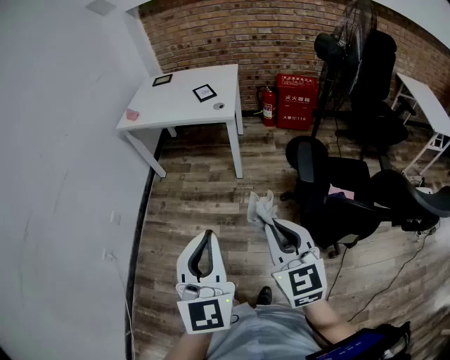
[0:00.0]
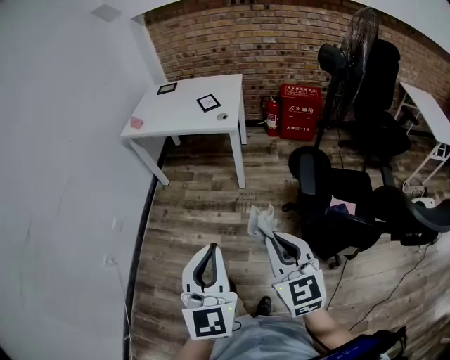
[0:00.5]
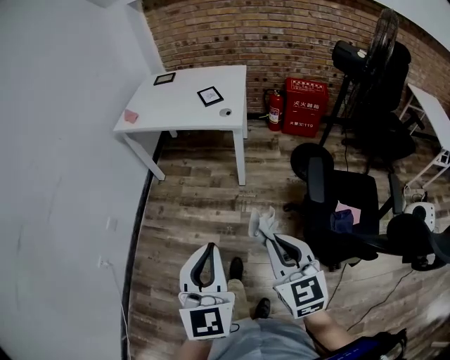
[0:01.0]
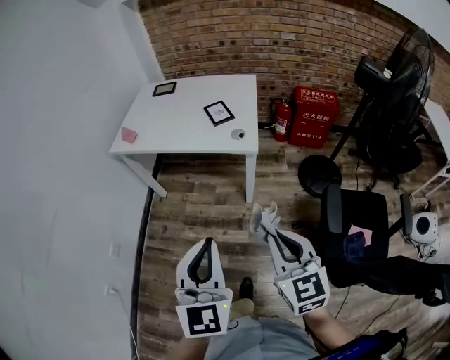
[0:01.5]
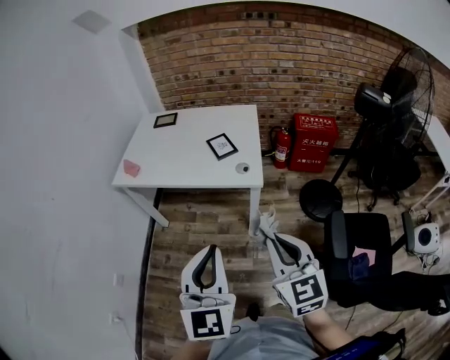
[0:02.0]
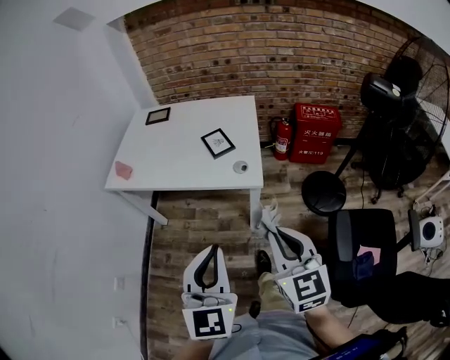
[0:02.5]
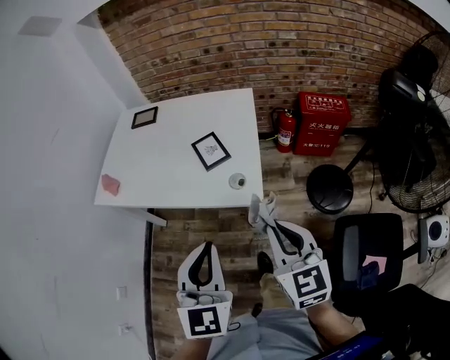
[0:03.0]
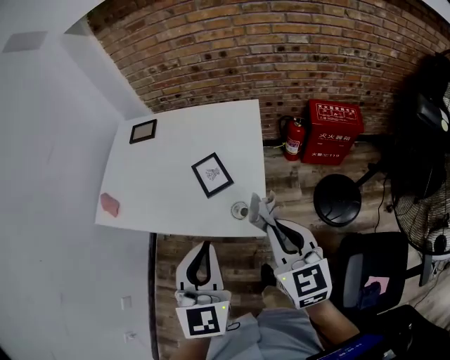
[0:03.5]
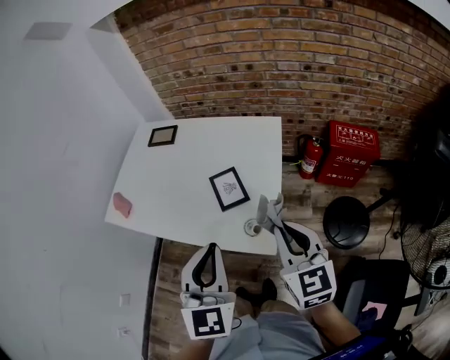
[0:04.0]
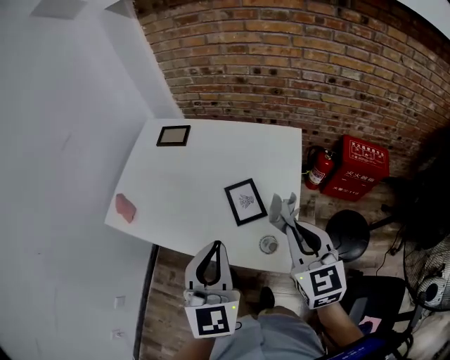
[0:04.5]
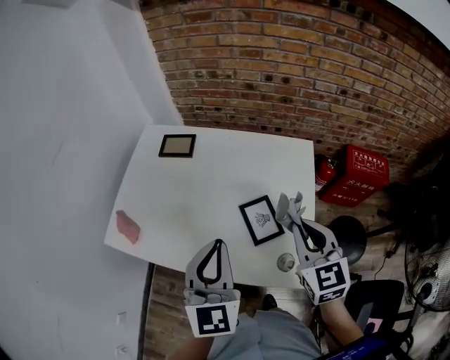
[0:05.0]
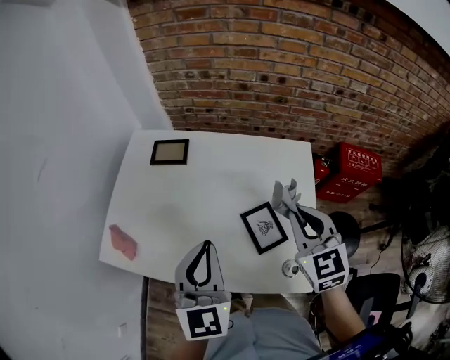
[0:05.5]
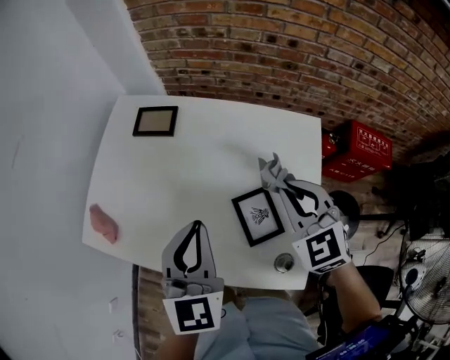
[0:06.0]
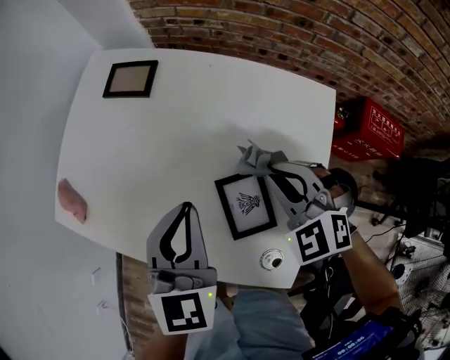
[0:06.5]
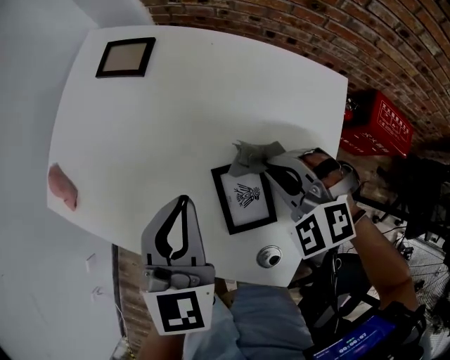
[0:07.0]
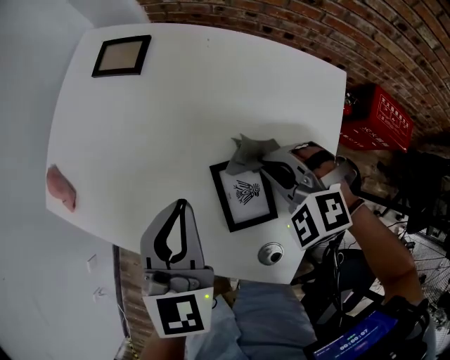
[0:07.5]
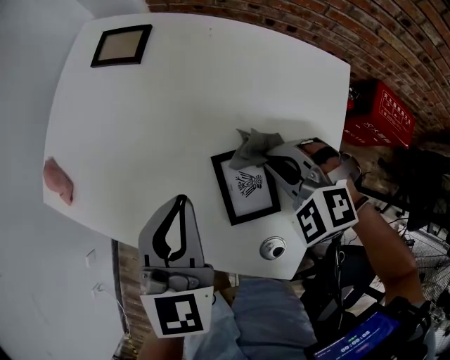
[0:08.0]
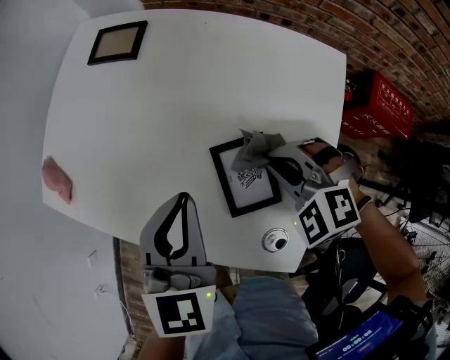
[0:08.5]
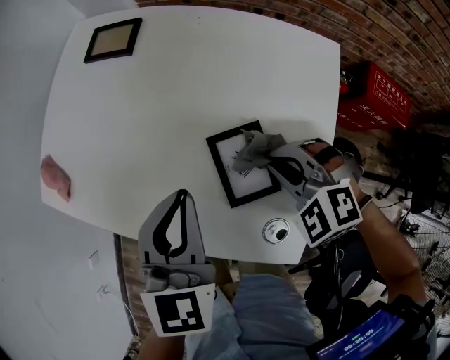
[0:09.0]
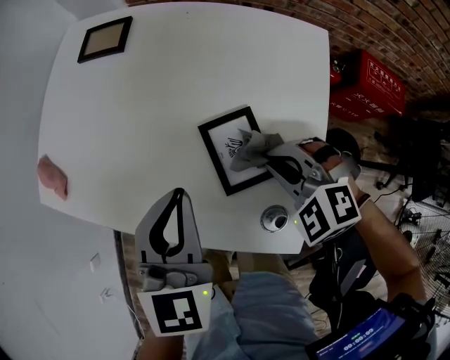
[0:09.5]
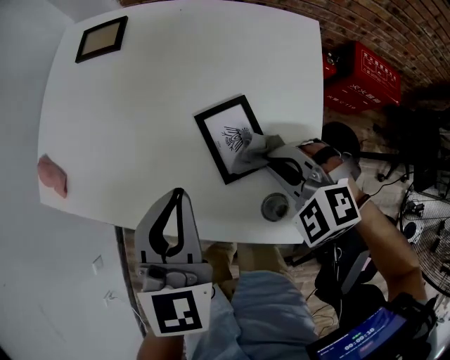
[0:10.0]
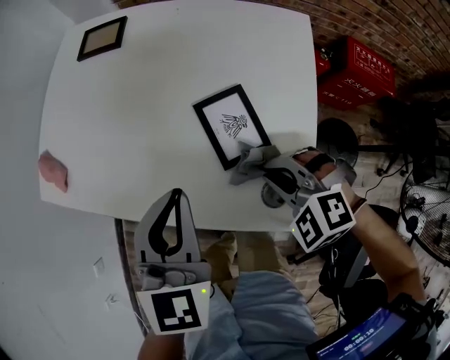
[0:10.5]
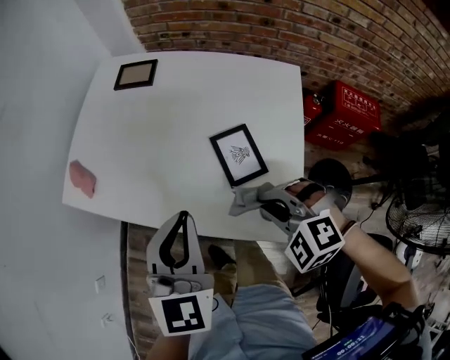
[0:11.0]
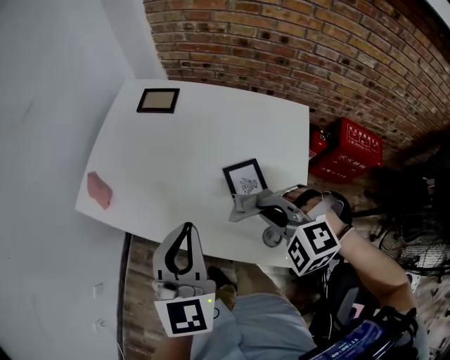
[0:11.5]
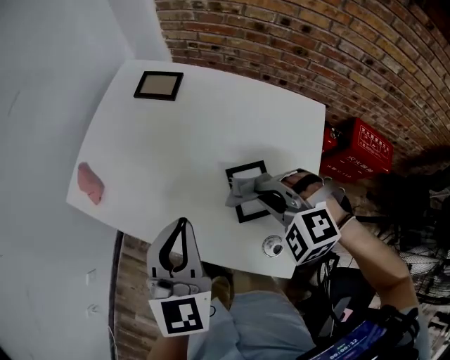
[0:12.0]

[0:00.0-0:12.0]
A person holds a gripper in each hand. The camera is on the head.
0:00.0 to 0:02.0: Both grippers move forward, approximately 35 cm.
0:02.0 to 0:04.0: Both grippers move forward, roughly 35 cm.
0:04.0 to 0:06.0: The right gripper heads forward, covering some 30 cm, and turns by approximately 30 degrees, while the left gripper is displaced forward and to the left by approximately 30 cm.
0:06.0 to 0:08.0: The right gripper moves downward, roughly 15 cm, and swivels some 50 degrees. Meanwhile the left gripper heads downward, covering roughly 10 cm.
0:08.0 to 0:10.0: The left gripper shifts approximately 5 cm backward. Meanwhile the right gripper heads backward, covering roughly 10 cm.
0:10.0 to 0:12.0: The left gripper heads upward and to the left, covering approximately 10 cm. The right gripper goes about 10 cm upward and forward.

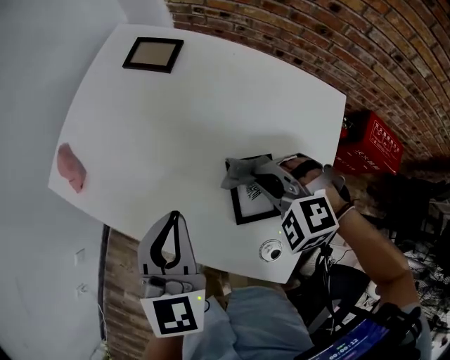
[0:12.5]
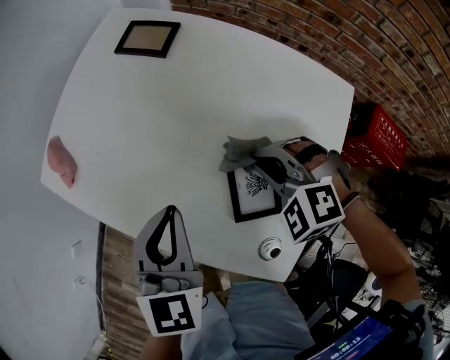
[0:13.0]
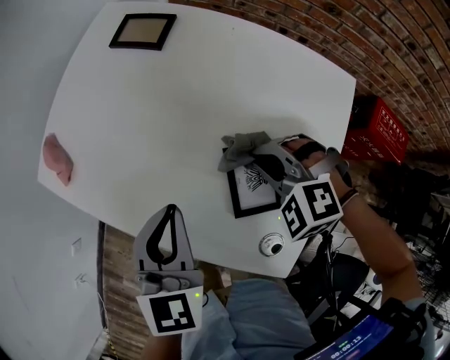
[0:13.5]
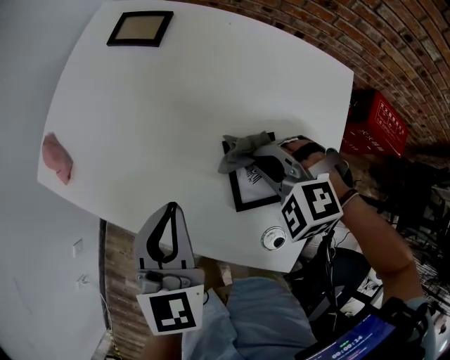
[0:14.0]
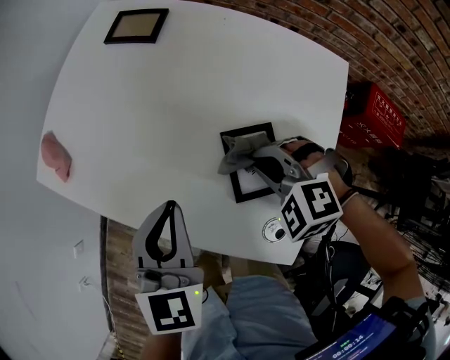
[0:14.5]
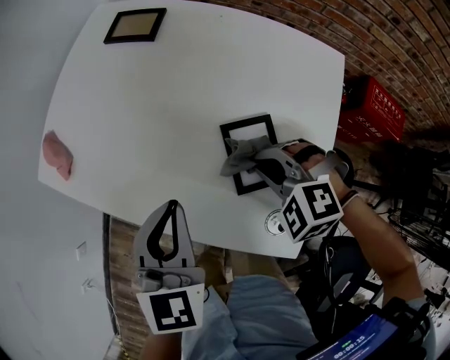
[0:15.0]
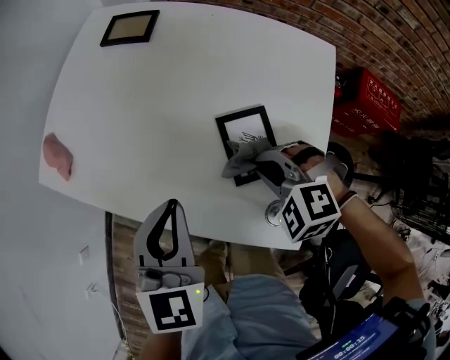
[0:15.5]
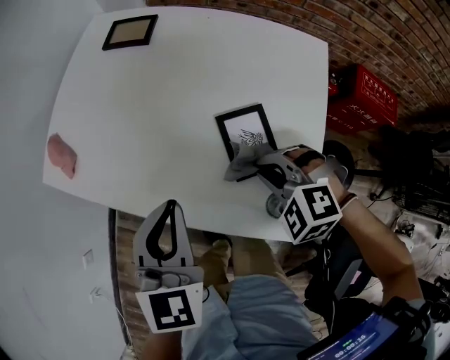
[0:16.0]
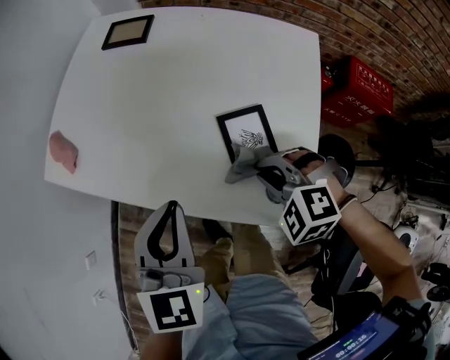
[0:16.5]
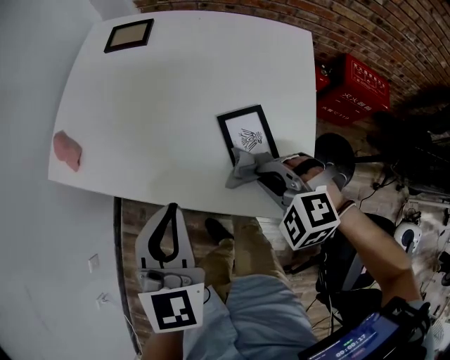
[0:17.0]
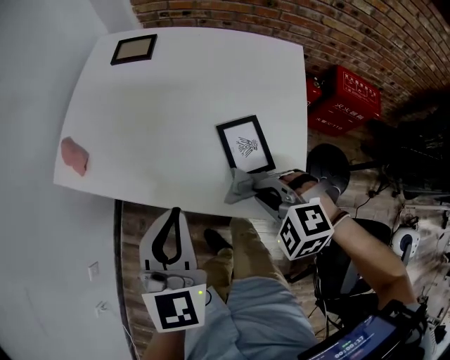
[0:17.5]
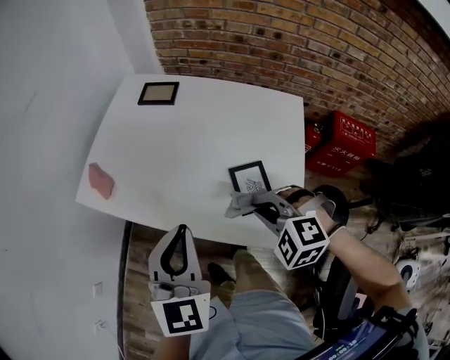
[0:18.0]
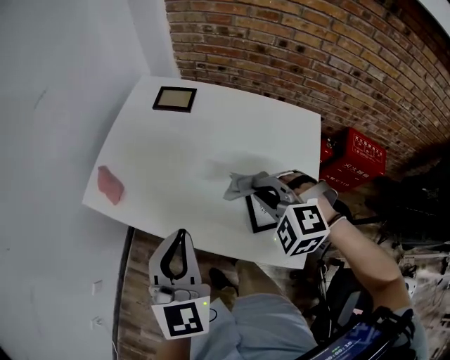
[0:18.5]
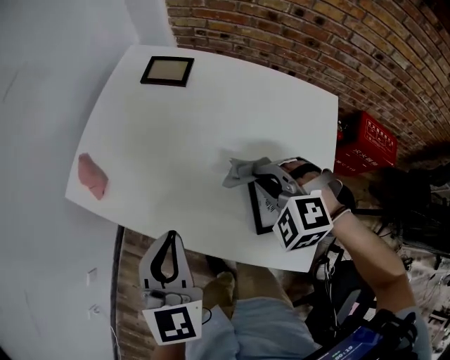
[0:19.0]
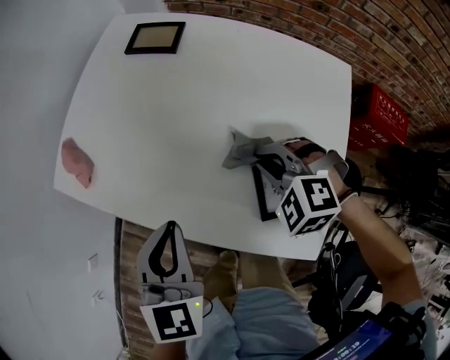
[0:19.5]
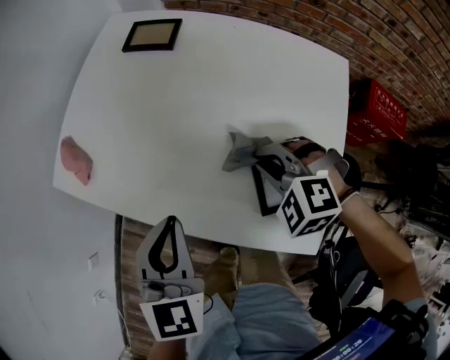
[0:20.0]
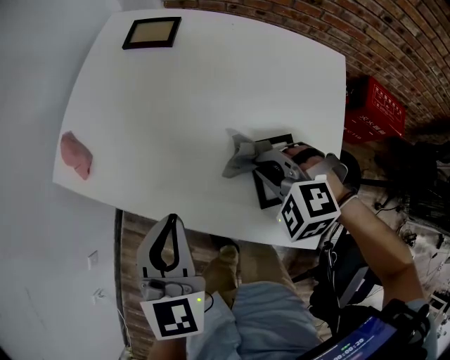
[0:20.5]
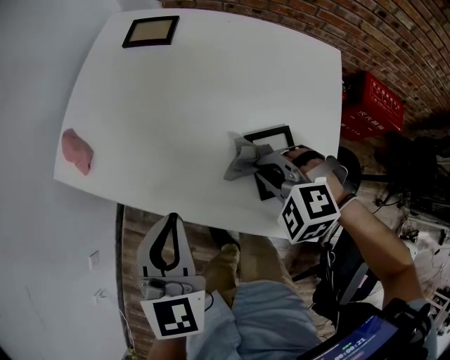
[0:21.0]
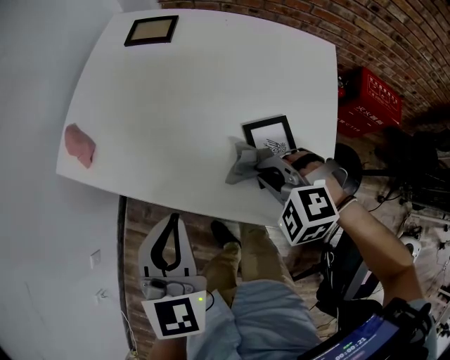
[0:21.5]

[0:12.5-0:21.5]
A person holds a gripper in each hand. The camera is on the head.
0:12.5 to 0:14.5: There are only small adjustments of the grippers.
0:14.5 to 0:17.0: The two grippers go roughly 10 cm backward.
0:17.0 to 0:19.5: The right gripper is displaced forward by about 15 cm. The left gripper moves forward, about 5 cm, and moves roughly 10 cm upward and comes back.
0:19.5 to 0:21.5: The left gripper shifts roughly 5 cm backward, while the right gripper goes approximately 10 cm backward.

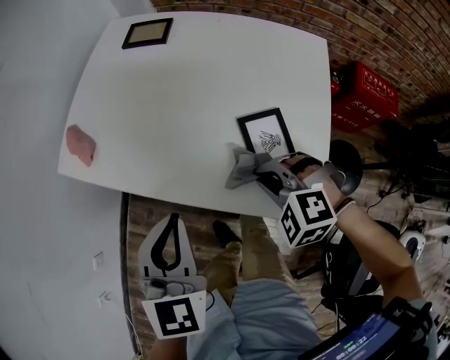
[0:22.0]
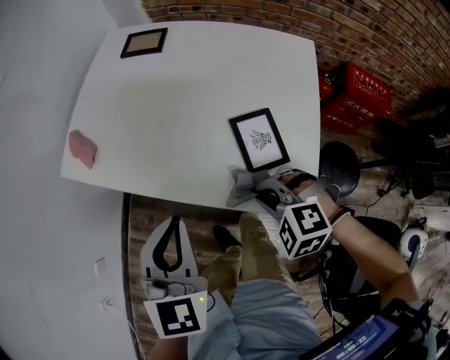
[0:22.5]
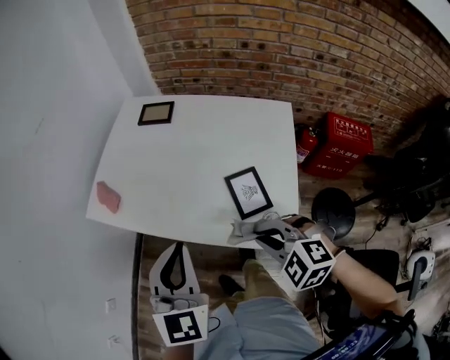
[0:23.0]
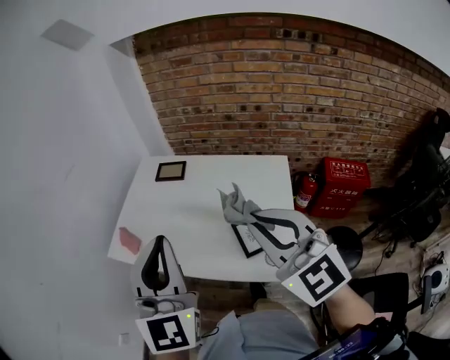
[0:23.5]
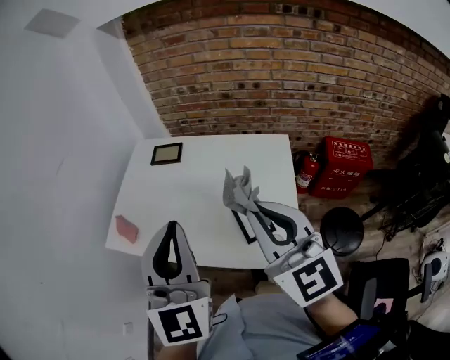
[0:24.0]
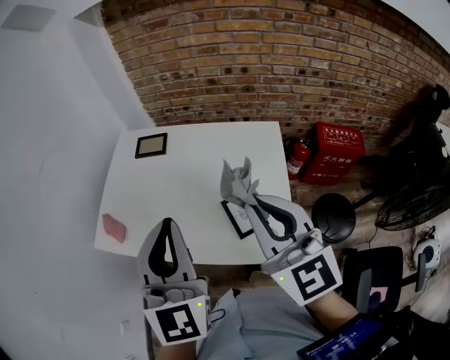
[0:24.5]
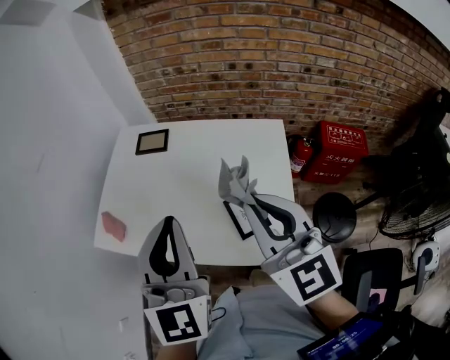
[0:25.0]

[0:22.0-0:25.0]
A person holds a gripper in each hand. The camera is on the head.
0:22.0 to 0:23.5: The grippers both shift upward by about 35 cm. The right gripper tips its fingers upward by about 60 degrees. The left gripper points its fingers approximately 30 degrees further upward.
0:23.5 to 0:25.0: The left gripper shifts some 10 cm downward and forward. Meanwhile the right gripper heads downward, covering approximately 5 cm, and swivels approximately 20 degrees.

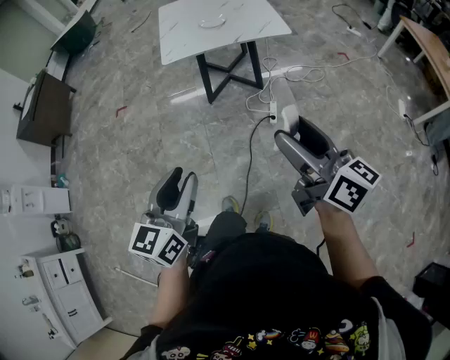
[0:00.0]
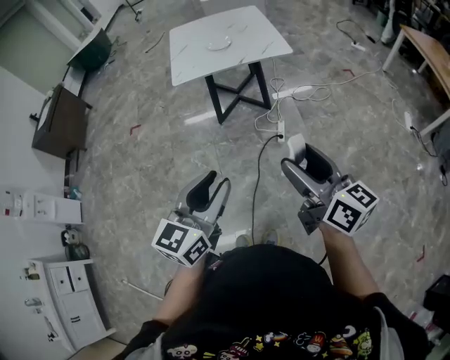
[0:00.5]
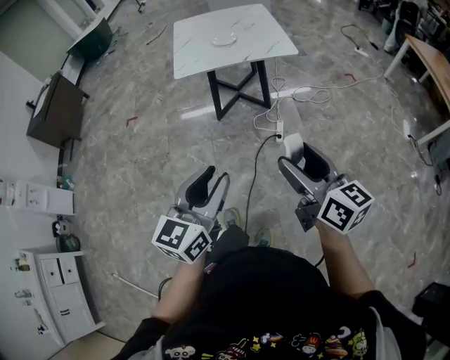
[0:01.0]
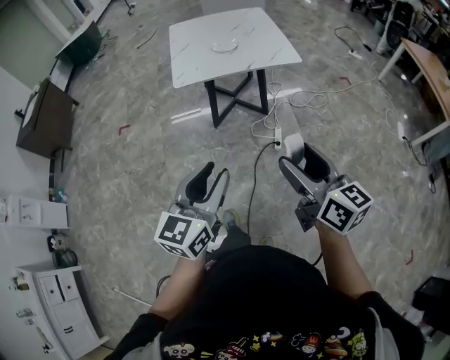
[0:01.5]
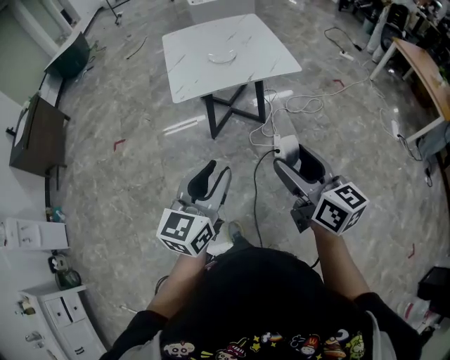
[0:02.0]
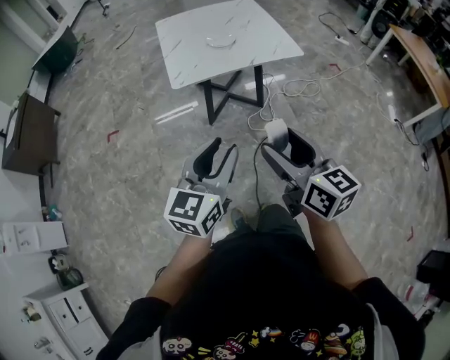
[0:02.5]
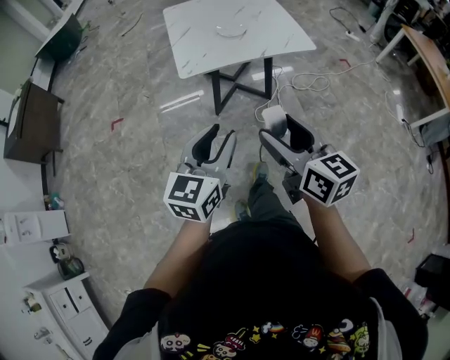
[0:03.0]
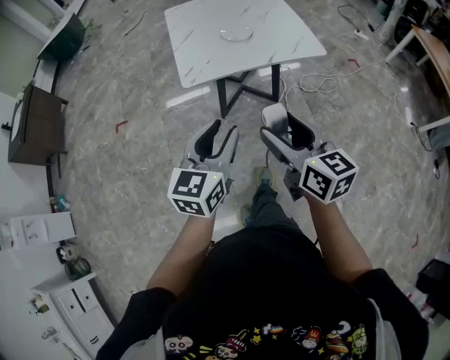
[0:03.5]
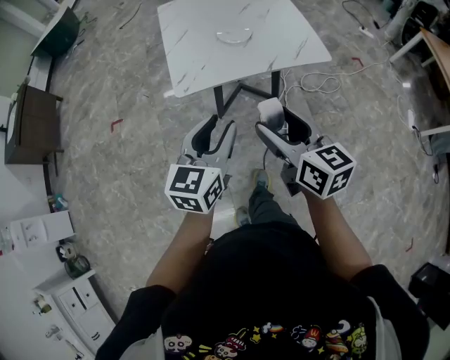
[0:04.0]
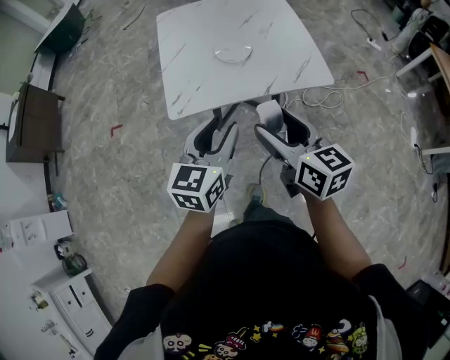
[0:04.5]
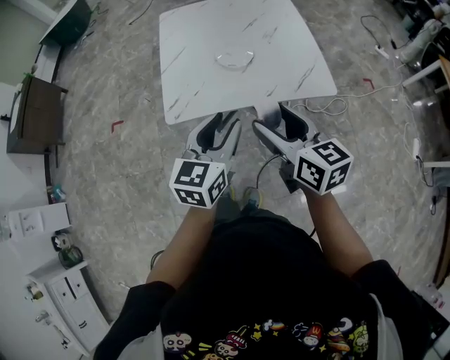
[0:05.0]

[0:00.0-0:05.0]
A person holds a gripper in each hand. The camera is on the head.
0:00.0 to 0:02.5: The left gripper shifts approximately 20 cm forward, while the right gripper goes about 20 cm to the left and forward, and swivels some 20 degrees.
0:02.5 to 0:05.0: The grippers both shift forward by some 35 cm.
